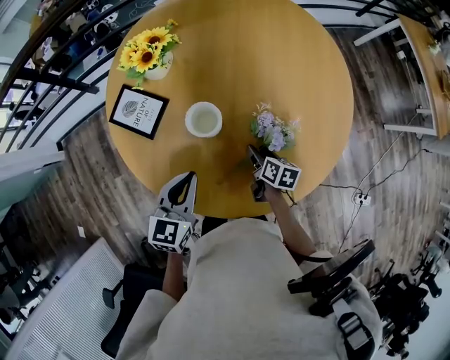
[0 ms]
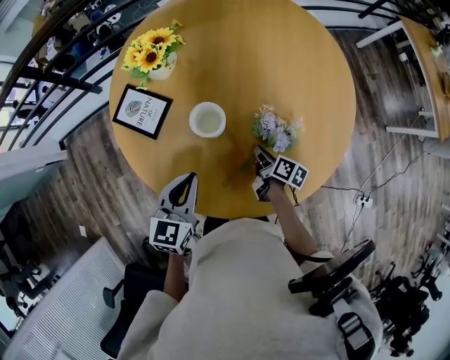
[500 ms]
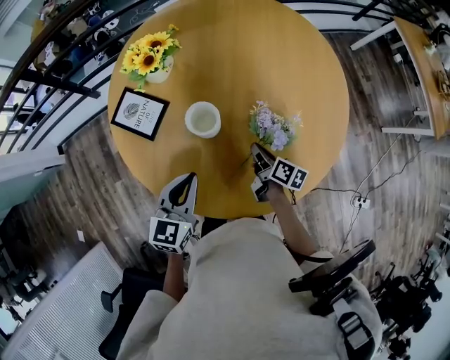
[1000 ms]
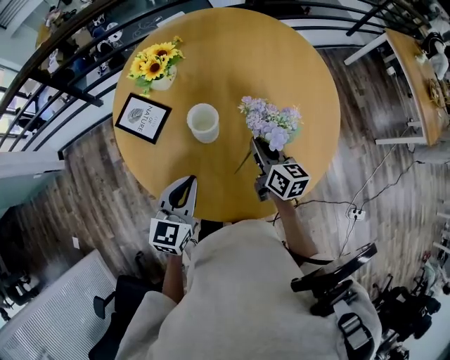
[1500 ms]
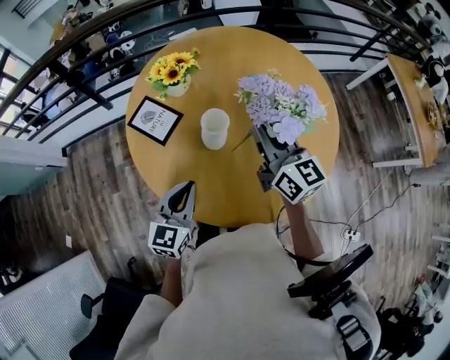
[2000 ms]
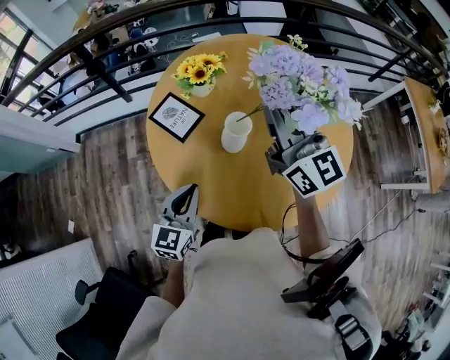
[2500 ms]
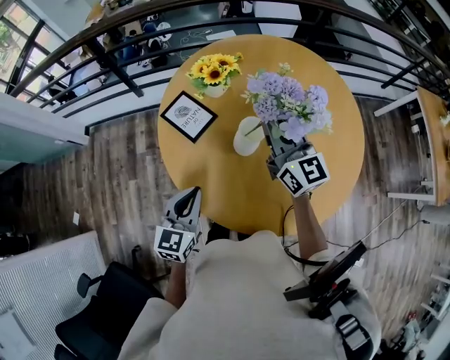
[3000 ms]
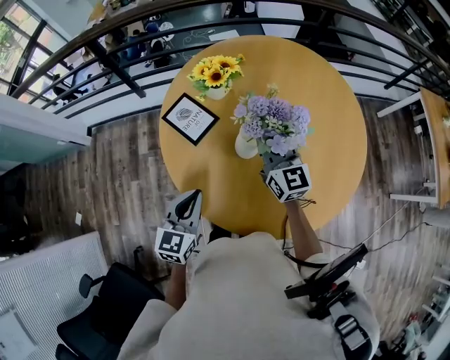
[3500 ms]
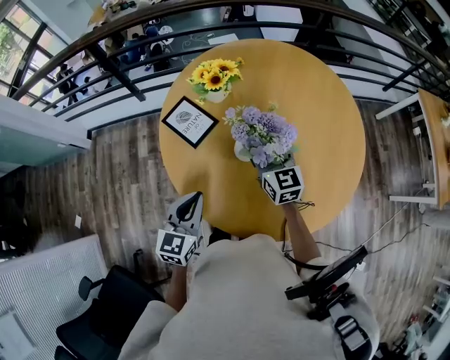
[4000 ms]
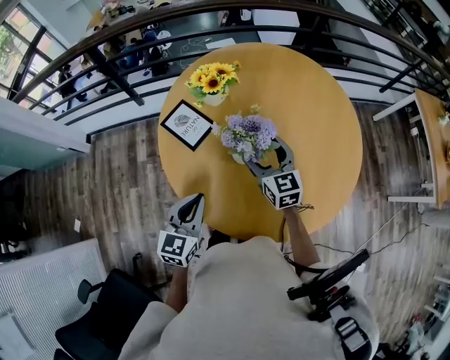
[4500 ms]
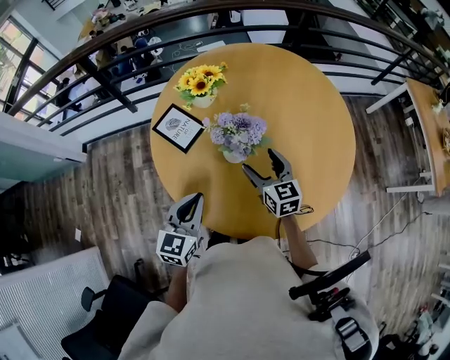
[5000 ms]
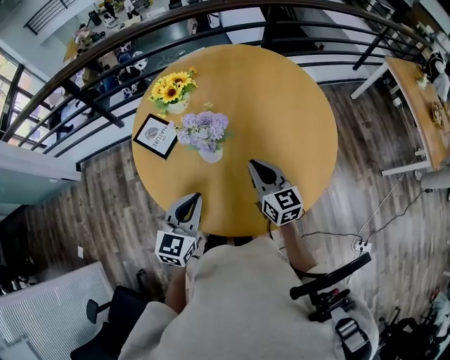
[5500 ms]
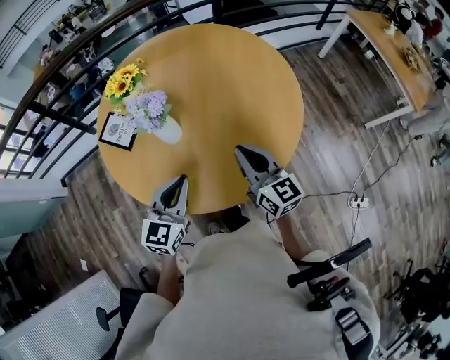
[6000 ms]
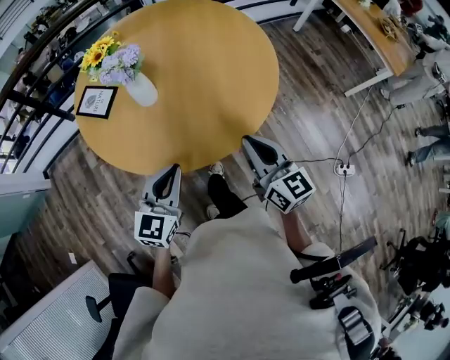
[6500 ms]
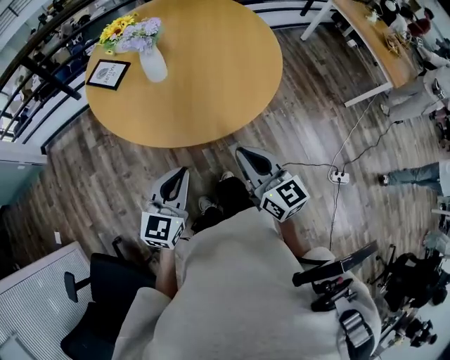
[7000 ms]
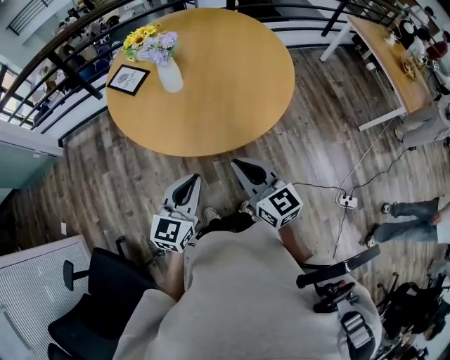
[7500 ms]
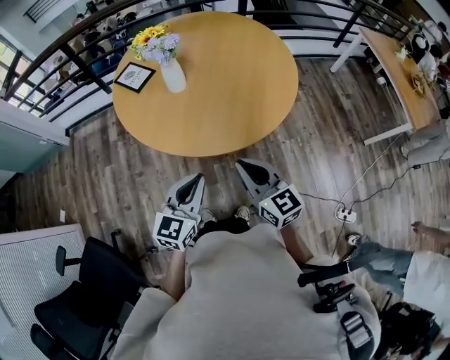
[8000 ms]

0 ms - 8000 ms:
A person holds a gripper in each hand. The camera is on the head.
0 ms - 2000 ms: The right gripper travels upward by roughly 35 cm, tilts its fingers some 40 degrees upward, and closes up.
2000 ms - 4000 ms: The right gripper goes roughly 10 cm downward and to the left, and opens up; the left gripper shifts some 5 cm to the left.
4000 ms - 6000 ms: The left gripper travels to the right by about 15 cm, and changes its angle by approximately 20 degrees, while the right gripper is displaced backward and to the right by approximately 25 cm, and closes its fingers.
6000 ms - 8000 ms: Both grippers travel together backward, about 20 cm.

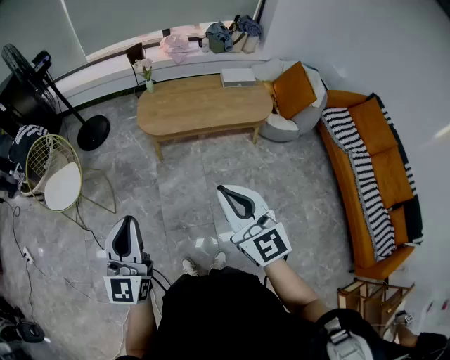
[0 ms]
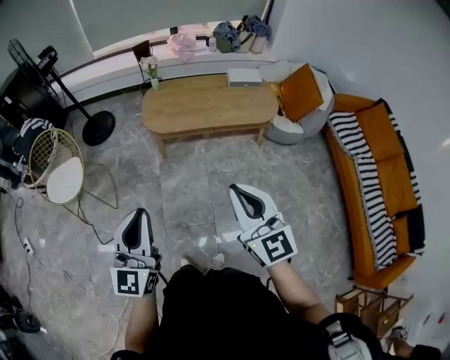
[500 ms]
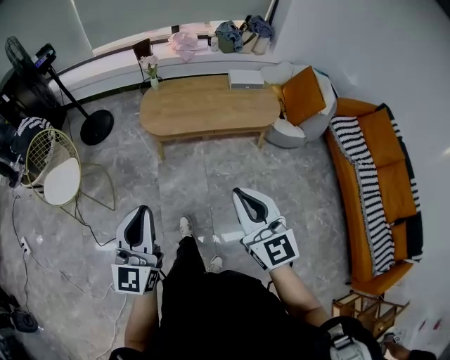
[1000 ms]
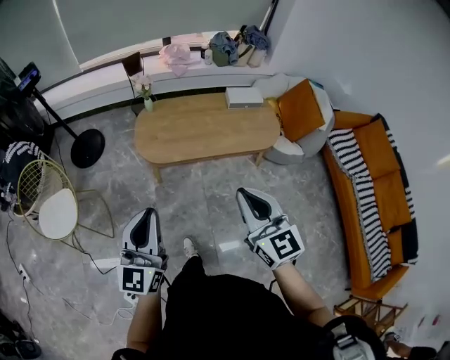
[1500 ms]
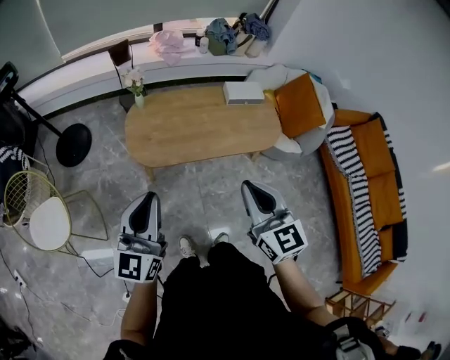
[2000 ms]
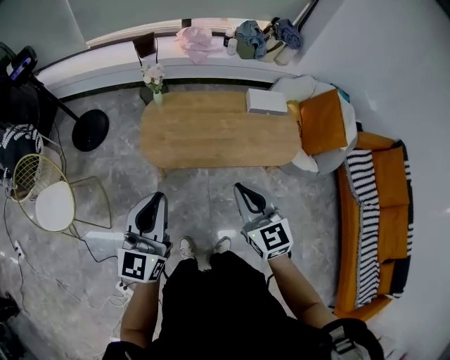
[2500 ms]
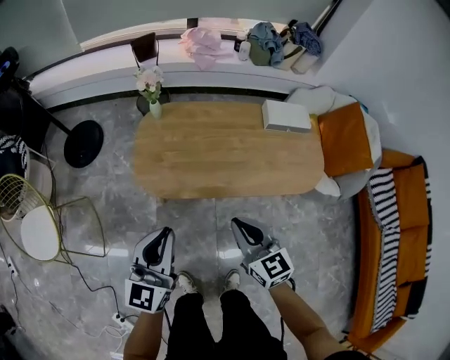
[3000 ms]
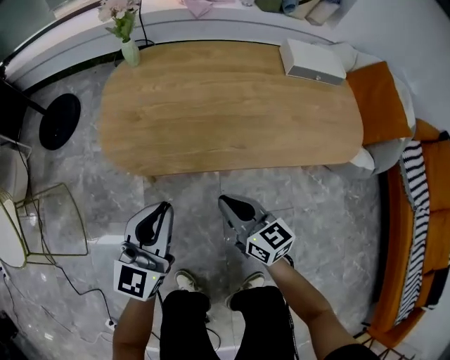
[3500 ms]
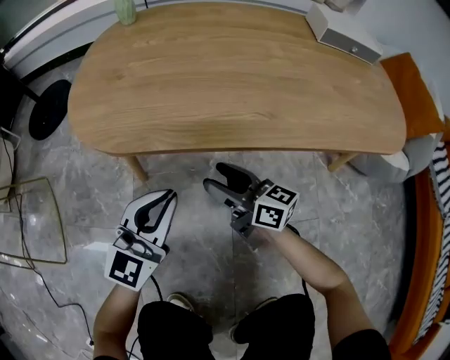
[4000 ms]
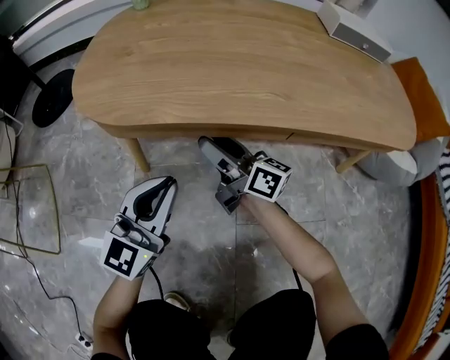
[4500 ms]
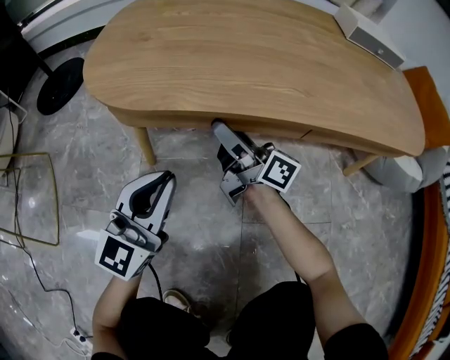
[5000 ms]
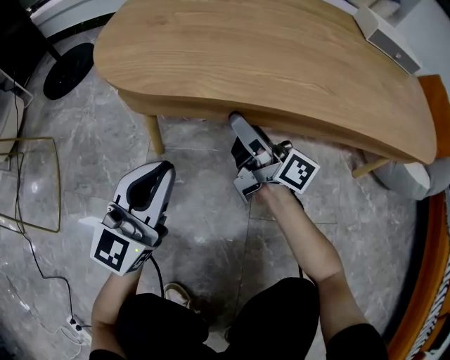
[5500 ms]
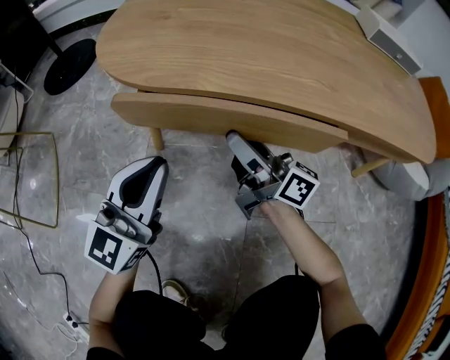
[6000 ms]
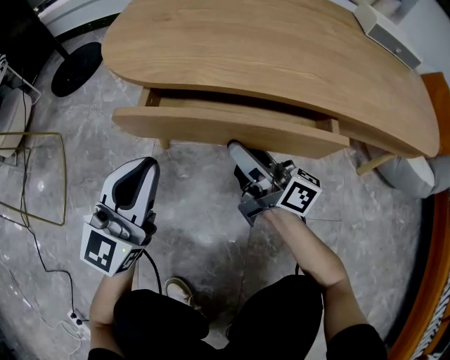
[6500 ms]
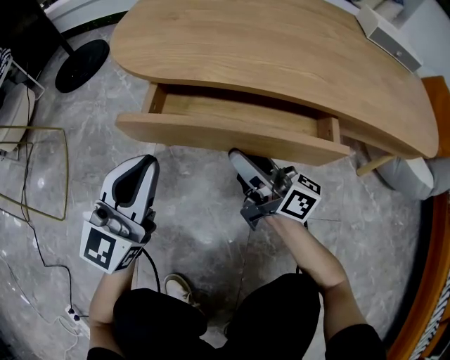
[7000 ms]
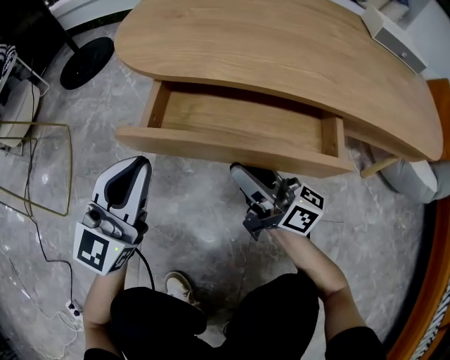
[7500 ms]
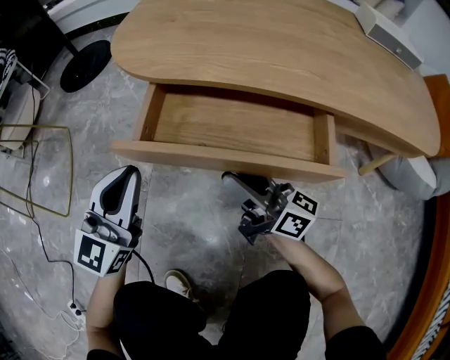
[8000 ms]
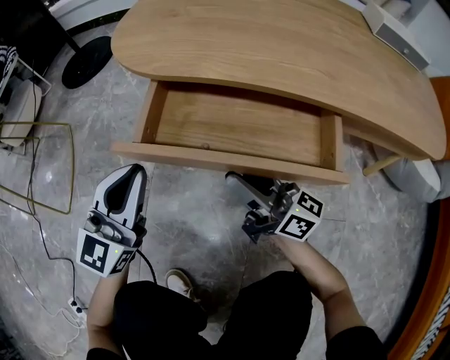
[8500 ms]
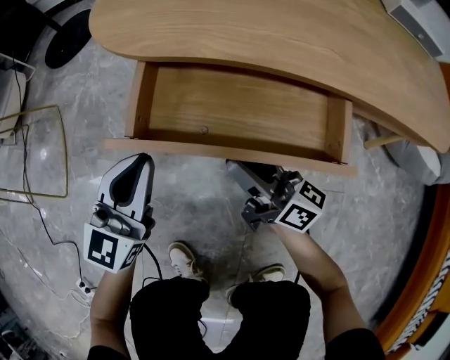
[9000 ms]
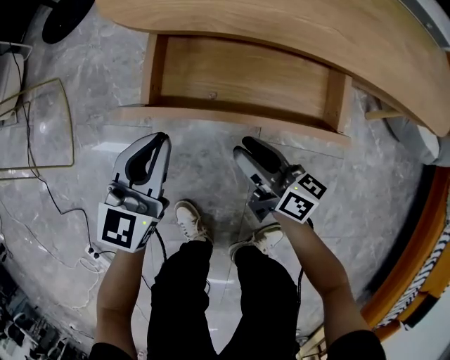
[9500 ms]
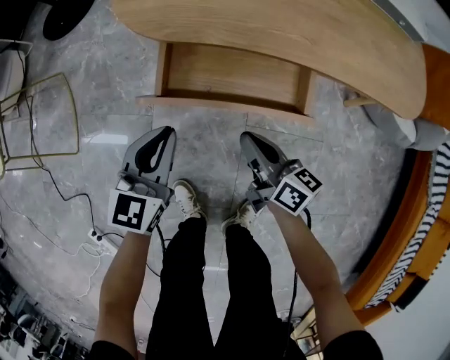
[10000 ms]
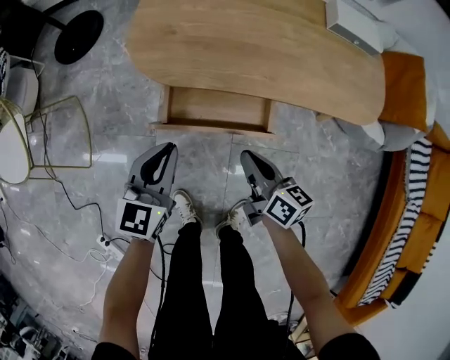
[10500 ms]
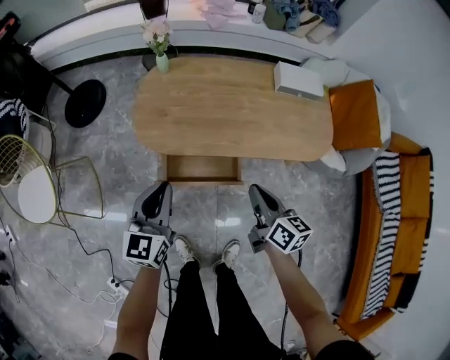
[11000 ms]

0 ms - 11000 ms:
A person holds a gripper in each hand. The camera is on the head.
0 ms - 2000 ms: The two grippers go approximately 35 cm forward.
2000 ms - 3500 ms: The two grippers go about 50 cm downward. The right gripper rotates approximately 30 degrees.
3500 ms - 5500 ms: The left gripper travels downward by approximately 20 cm. The right gripper shifts some 20 cm downward and forward, angles its fingers upward, by some 30 degrees, and opens its fingers.
5500 ms - 7500 ms: The right gripper heads backward, covering some 15 cm, while the left gripper travels to the left by approximately 5 cm.
7500 ms - 9000 ms: There are only small adjustments of the grippers.
9000 ms - 11000 ms: The two grippers go about 40 cm upward. The right gripper changes its angle by roughly 40 degrees, and closes up.

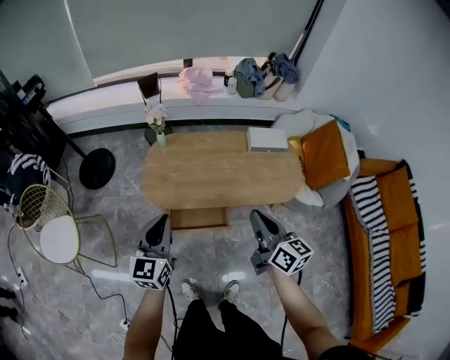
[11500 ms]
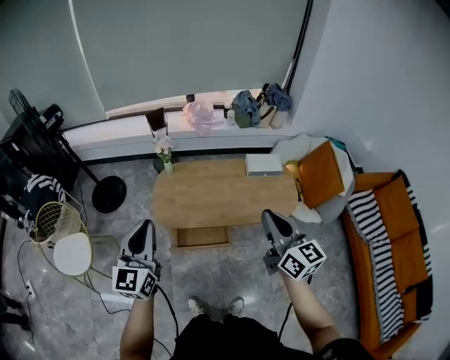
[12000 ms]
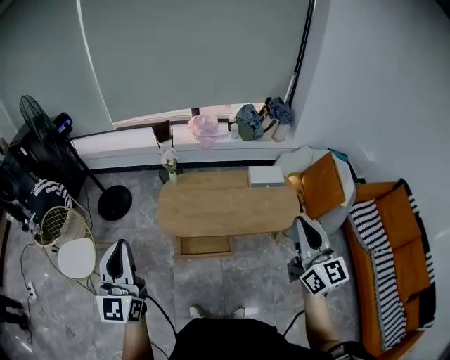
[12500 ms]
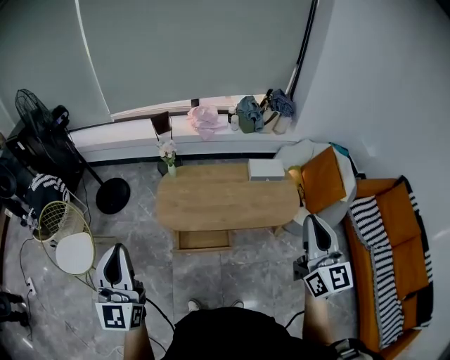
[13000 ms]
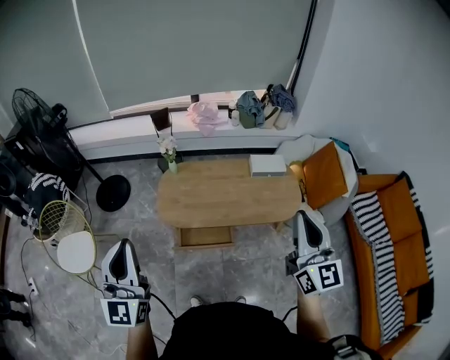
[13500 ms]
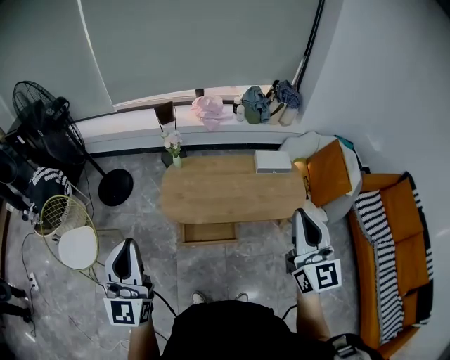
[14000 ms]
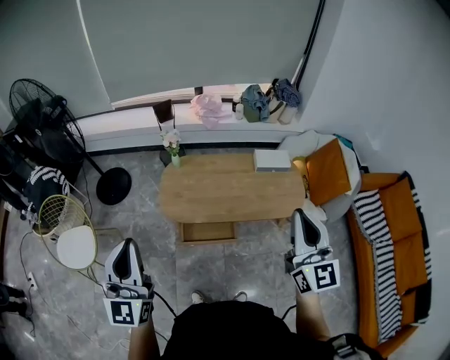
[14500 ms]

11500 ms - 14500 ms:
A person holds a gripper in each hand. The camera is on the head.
11500 ms - 13000 ms: The left gripper is displaced upward and backward by roughly 30 cm, and turns by approximately 30 degrees. The right gripper moves upward, to the right and backward, some 25 cm, and rotates about 40 degrees.
13000 ms - 14500 ms: The right gripper travels to the left by about 5 cm.

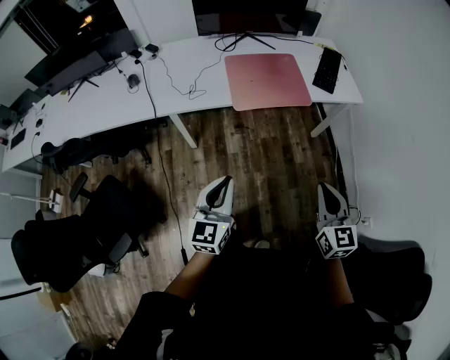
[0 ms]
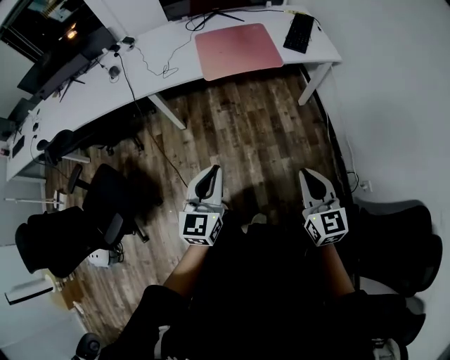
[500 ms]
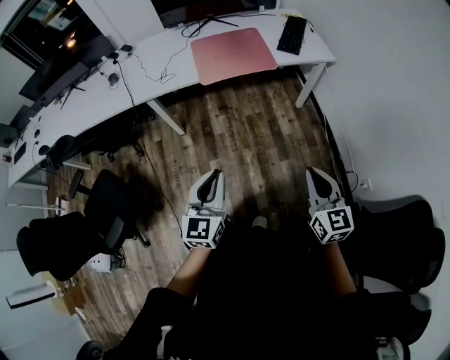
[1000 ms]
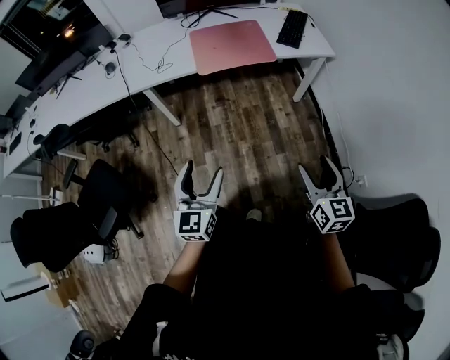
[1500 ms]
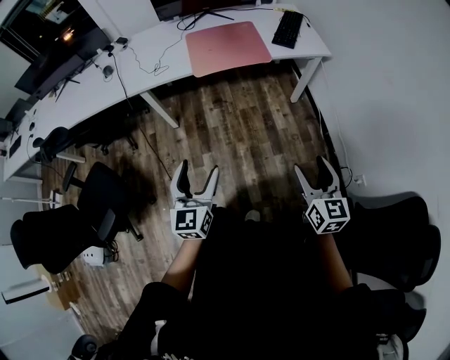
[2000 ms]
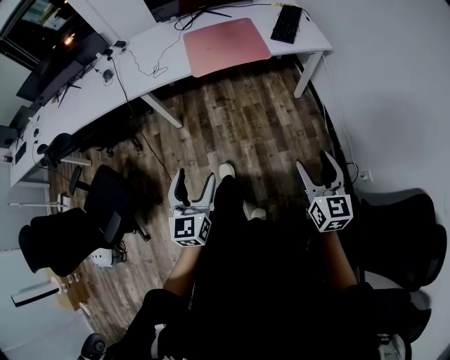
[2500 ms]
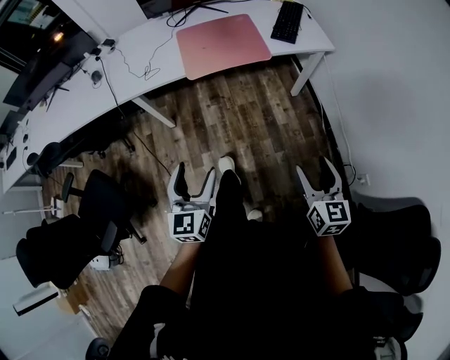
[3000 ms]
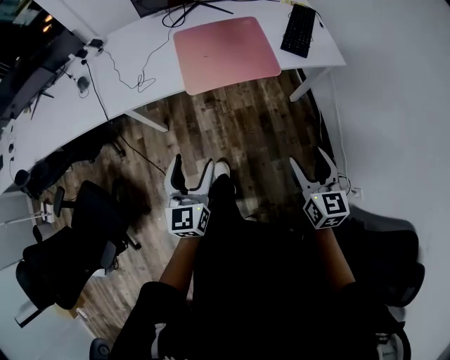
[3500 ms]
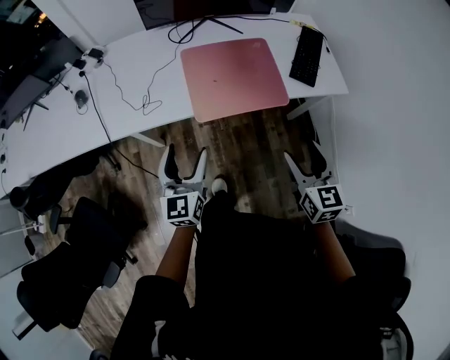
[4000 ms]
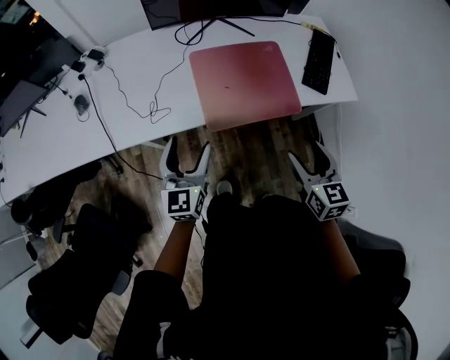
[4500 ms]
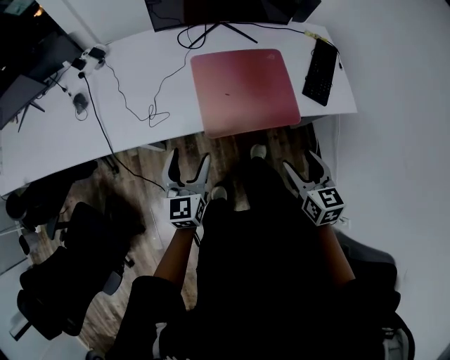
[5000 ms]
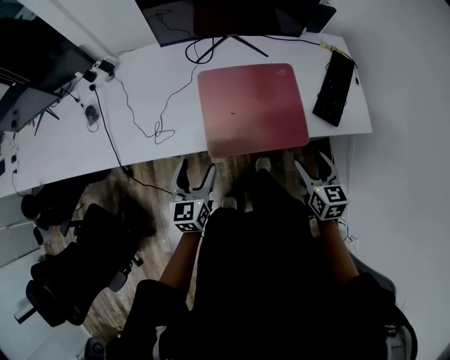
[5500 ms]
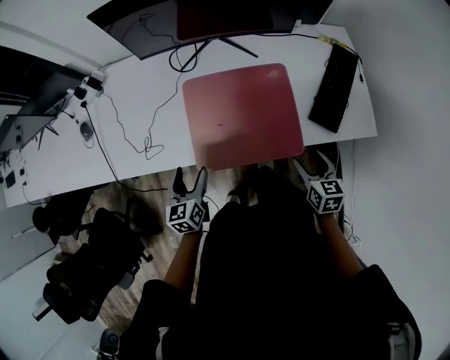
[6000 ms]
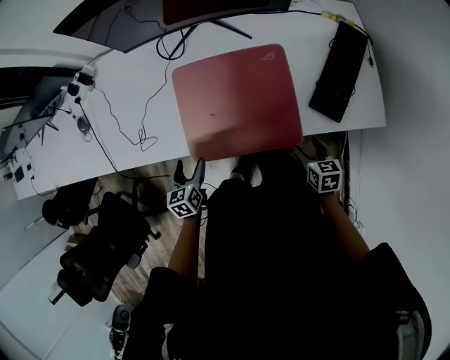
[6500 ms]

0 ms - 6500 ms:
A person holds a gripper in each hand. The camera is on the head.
0 ms - 2000 ms: The right gripper shifts about 20 cm to the right and backward, and opens its fingers, while the left gripper moves backward and to the right, roughly 20 cm, and opens its fingers.
2000 ms - 4500 ms: Both grippers are carried forward, some 50 cm.
4500 ms - 6500 ms: The left gripper is displaced downward, forward and to the right by some 25 cm, and angles its fingers downward, by some 30 degrees. Meanwhile the right gripper travels downward, to the right and forward by about 40 cm, and turns by some 30 degrees.
